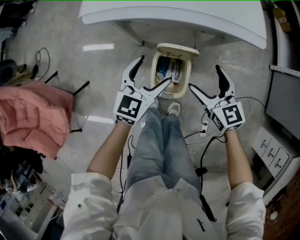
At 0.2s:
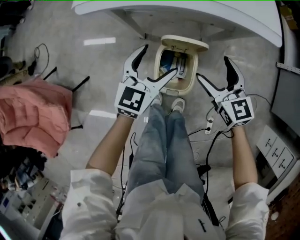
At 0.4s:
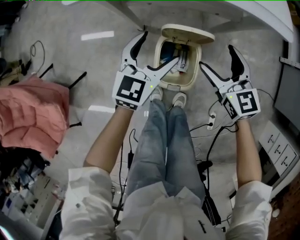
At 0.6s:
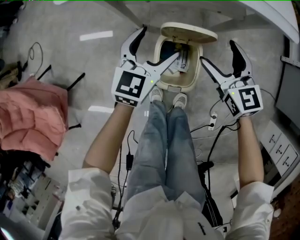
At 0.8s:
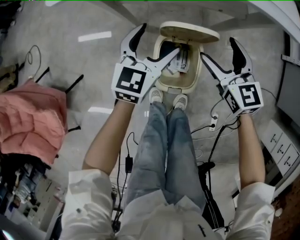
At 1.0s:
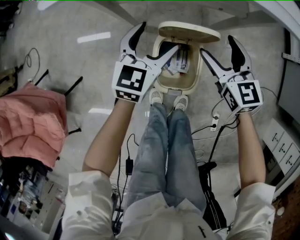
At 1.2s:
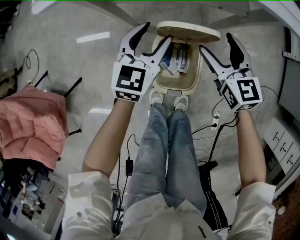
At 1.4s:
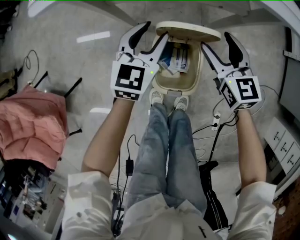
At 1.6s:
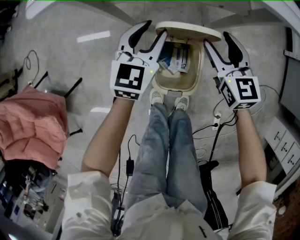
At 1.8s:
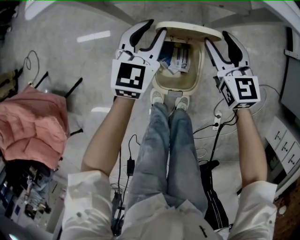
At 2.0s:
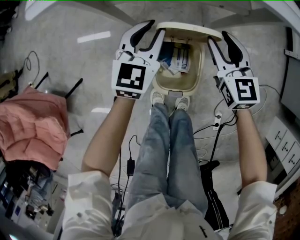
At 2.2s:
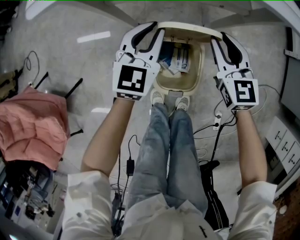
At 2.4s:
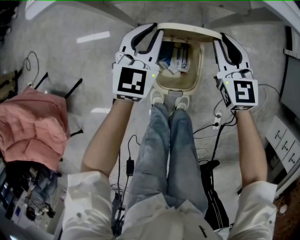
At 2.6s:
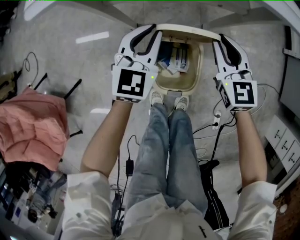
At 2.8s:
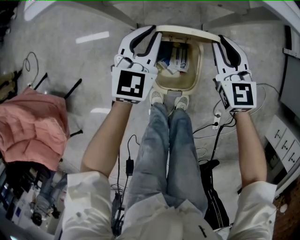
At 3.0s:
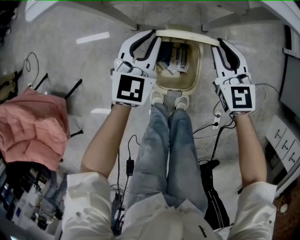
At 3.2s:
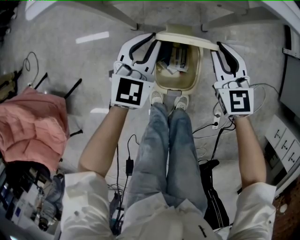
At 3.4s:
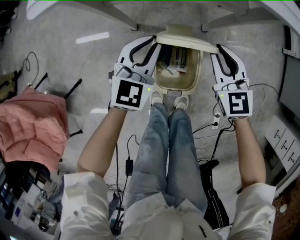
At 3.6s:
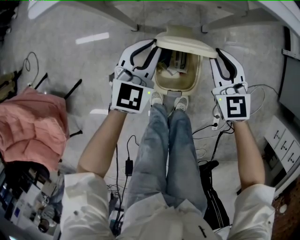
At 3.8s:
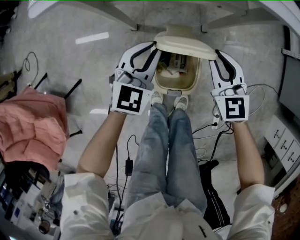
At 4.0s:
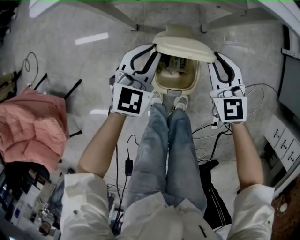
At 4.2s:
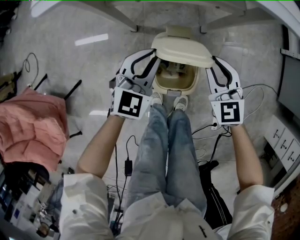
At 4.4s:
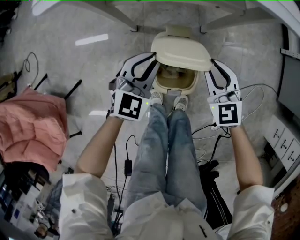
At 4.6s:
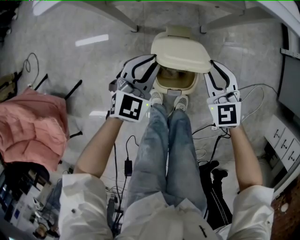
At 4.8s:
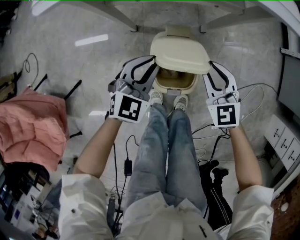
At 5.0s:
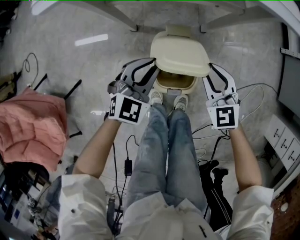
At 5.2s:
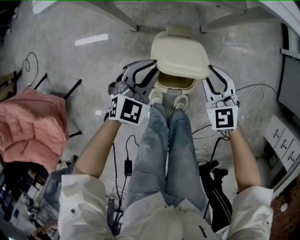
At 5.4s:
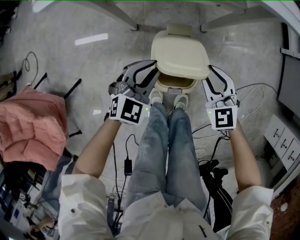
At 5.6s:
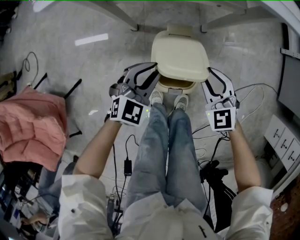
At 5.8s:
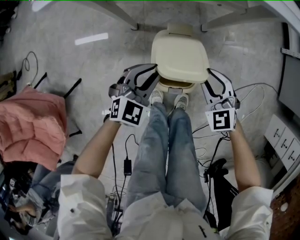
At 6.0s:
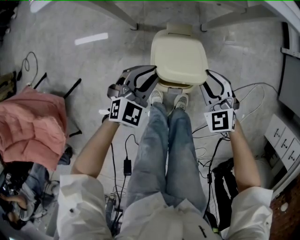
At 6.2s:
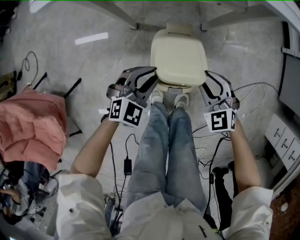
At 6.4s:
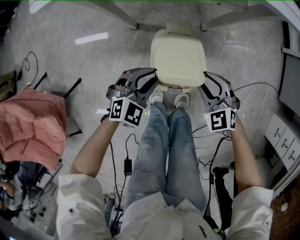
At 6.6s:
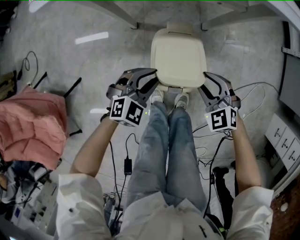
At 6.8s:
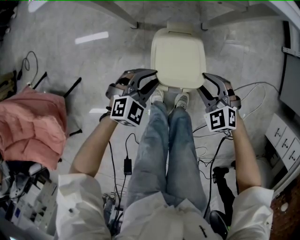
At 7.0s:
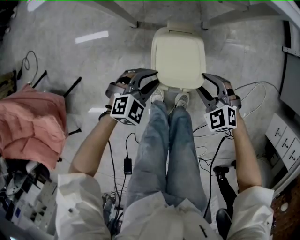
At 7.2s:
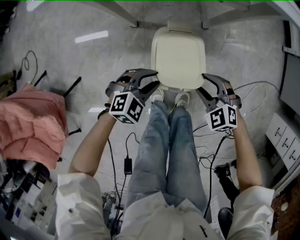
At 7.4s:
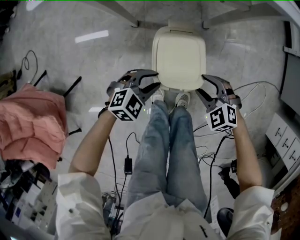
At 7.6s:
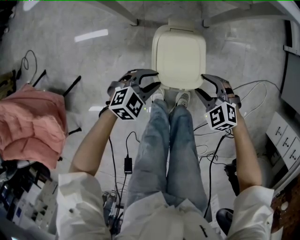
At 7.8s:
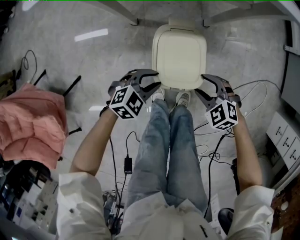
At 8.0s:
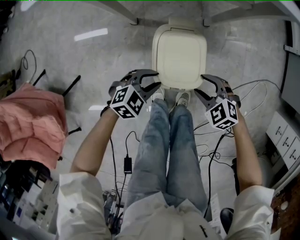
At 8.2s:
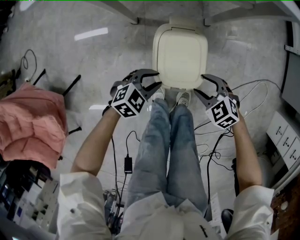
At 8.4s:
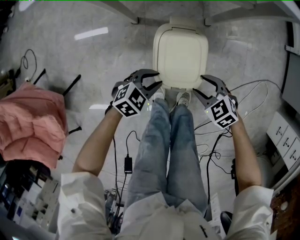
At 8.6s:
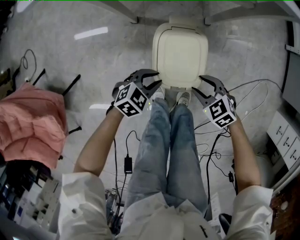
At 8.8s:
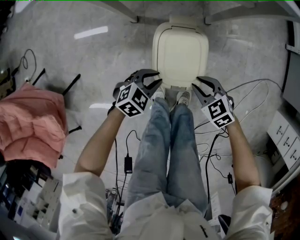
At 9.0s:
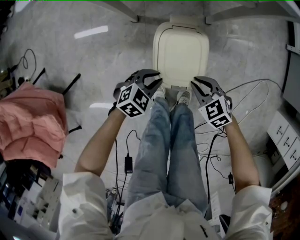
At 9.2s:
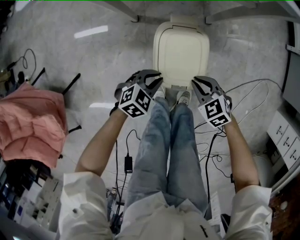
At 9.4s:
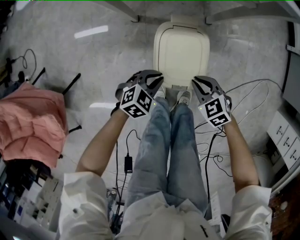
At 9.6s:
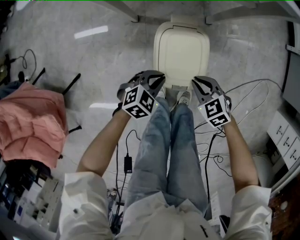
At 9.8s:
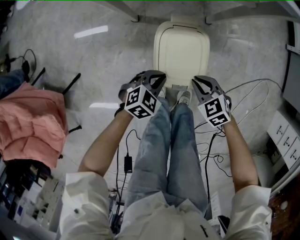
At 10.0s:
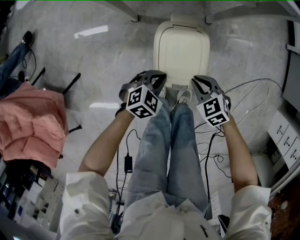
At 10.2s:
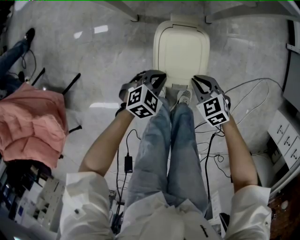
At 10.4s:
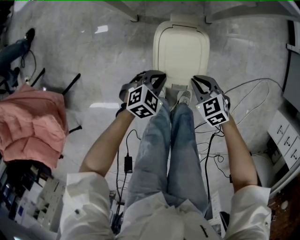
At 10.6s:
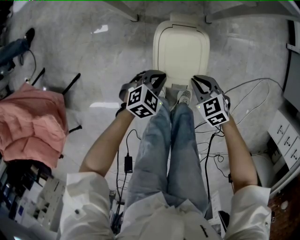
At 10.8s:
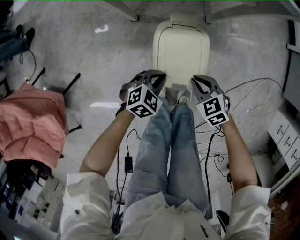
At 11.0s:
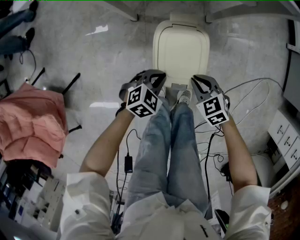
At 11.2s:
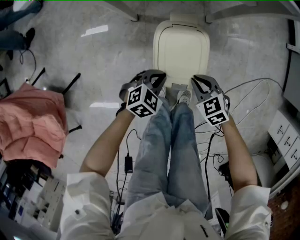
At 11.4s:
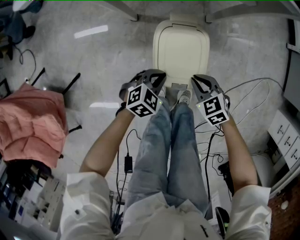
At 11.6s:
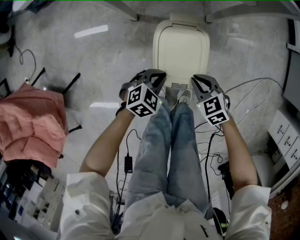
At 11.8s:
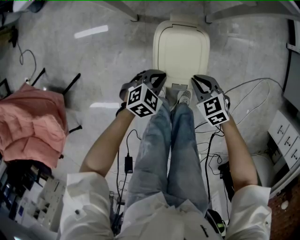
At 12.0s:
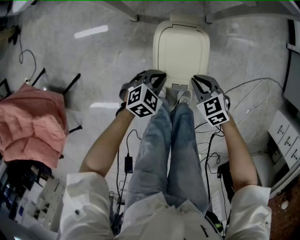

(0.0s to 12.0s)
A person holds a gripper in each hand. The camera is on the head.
0.0s - 1.6s: Both grippers travel together downward and forward, approximately 15 cm. The left gripper closes up; the right gripper closes its fingers.
1.6s - 3.0s: The right gripper closes.
3.0s - 4.4s: Both grippers travel together backward, some 5 cm.
4.4s - 6.0s: The two grippers go about 5 cm backward.
6.0s - 7.6s: The two grippers go some 5 cm downward. The left gripper rotates about 20 degrees, while the right gripper swivels roughly 20 degrees.
7.6s - 9.0s: The right gripper turns by roughly 20 degrees.
9.0s - 10.4s: There are only small adjustments of the grippers.
10.4s - 12.0s: Neither gripper changes place.

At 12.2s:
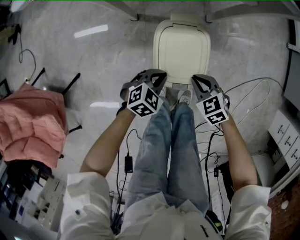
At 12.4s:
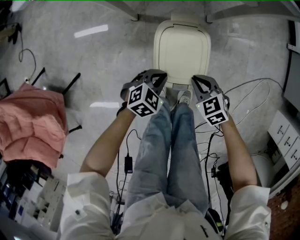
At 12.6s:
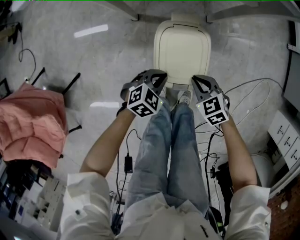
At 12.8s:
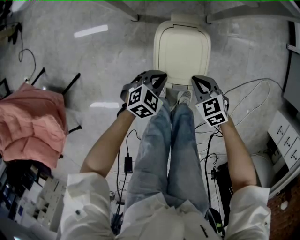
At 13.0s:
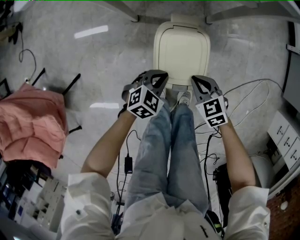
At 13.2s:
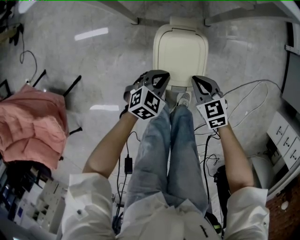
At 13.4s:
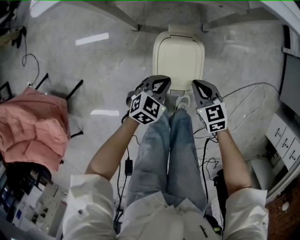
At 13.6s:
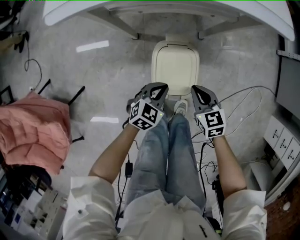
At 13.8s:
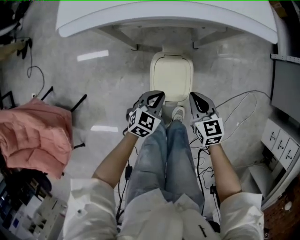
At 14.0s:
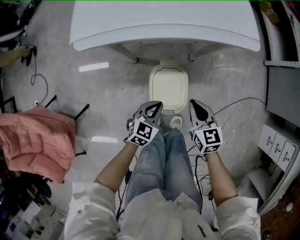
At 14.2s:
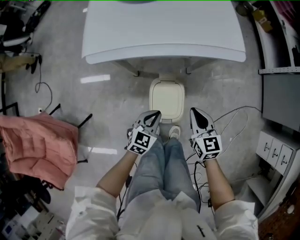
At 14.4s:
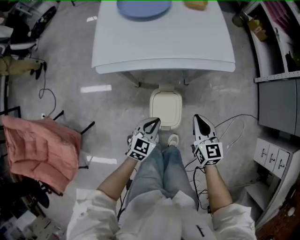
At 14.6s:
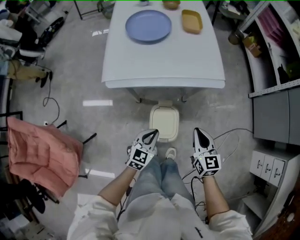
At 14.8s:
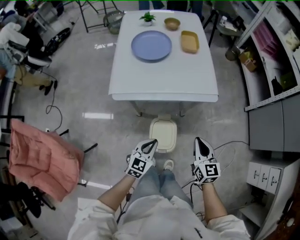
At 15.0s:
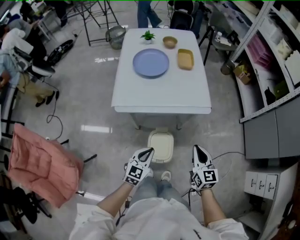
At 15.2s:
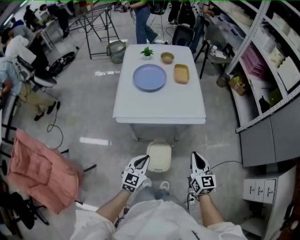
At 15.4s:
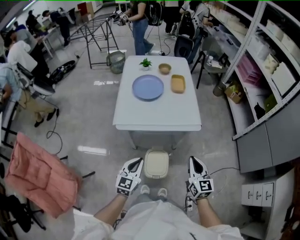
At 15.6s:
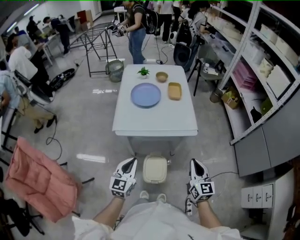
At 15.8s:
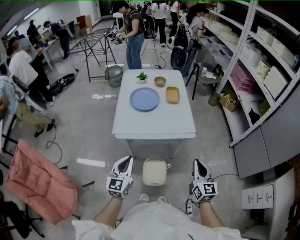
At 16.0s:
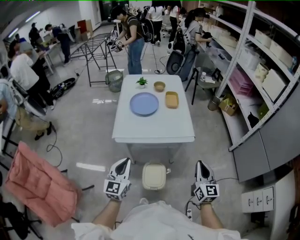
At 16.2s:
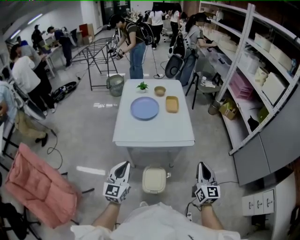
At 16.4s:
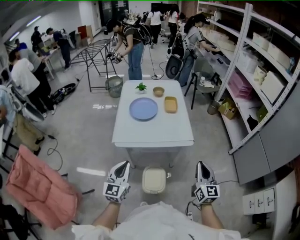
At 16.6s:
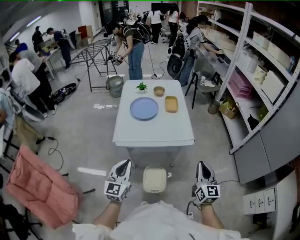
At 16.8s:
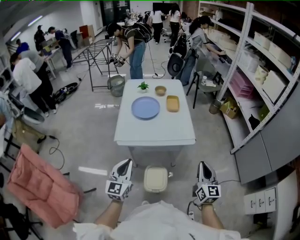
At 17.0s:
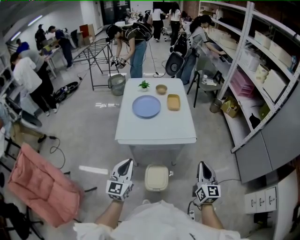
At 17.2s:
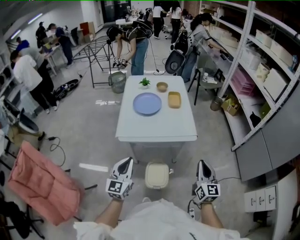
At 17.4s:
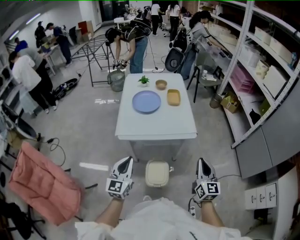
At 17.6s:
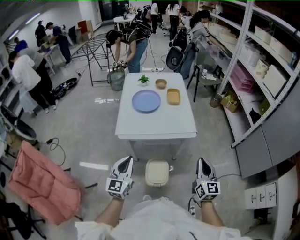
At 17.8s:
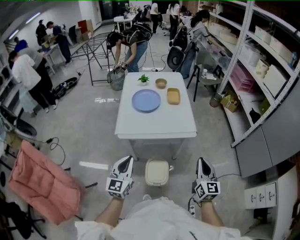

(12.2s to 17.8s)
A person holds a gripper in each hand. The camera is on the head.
12.2s - 13.6s: Both grippers move upward, some 10 cm. The right gripper swivels roughly 20 degrees.
13.6s - 15.0s: The grippers both shift upward by approximately 50 cm. The right gripper changes its angle by some 30 degrees, while the left gripper turns by approximately 20 degrees.
15.0s - 16.4s: The right gripper heads upward and to the right, covering some 20 cm. The left gripper travels upward by some 25 cm, and rotates roughly 30 degrees.
16.4s - 17.8s: The grippers stay close to where they were, moving slightly.

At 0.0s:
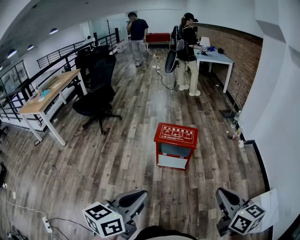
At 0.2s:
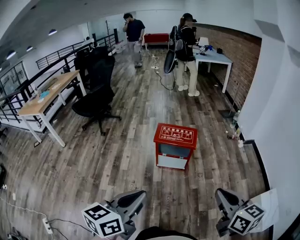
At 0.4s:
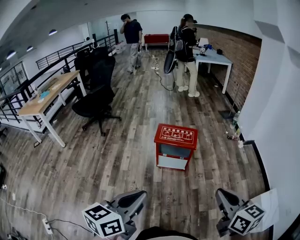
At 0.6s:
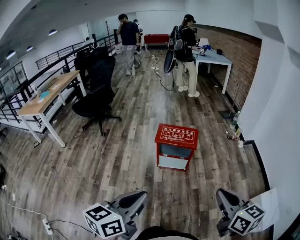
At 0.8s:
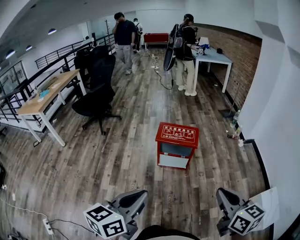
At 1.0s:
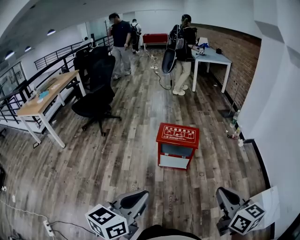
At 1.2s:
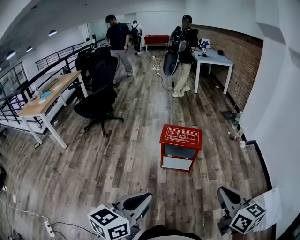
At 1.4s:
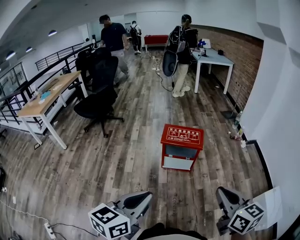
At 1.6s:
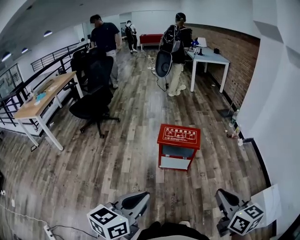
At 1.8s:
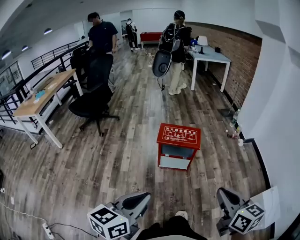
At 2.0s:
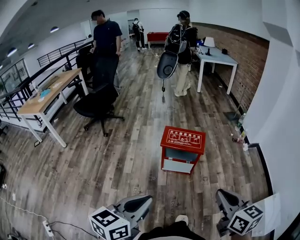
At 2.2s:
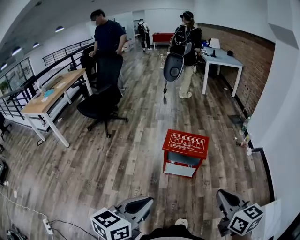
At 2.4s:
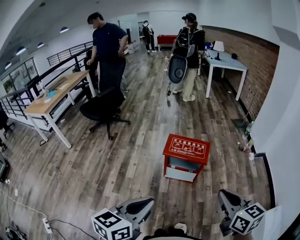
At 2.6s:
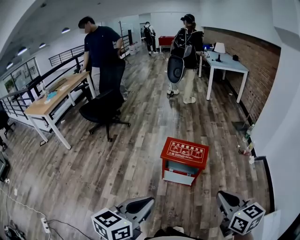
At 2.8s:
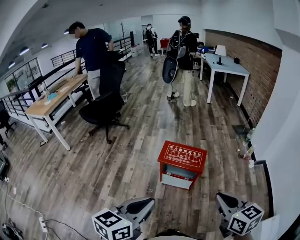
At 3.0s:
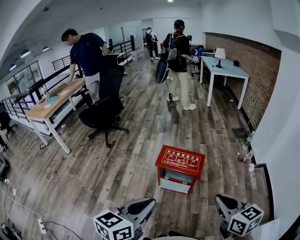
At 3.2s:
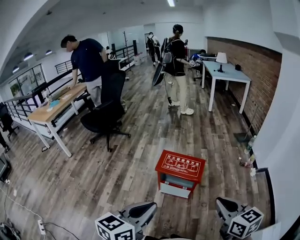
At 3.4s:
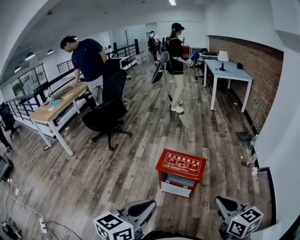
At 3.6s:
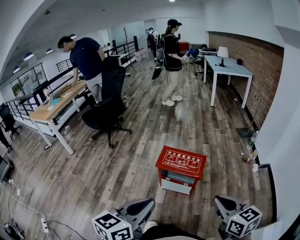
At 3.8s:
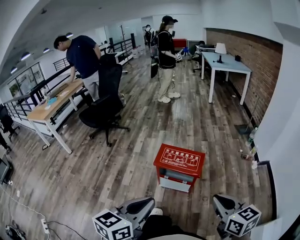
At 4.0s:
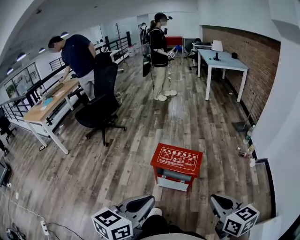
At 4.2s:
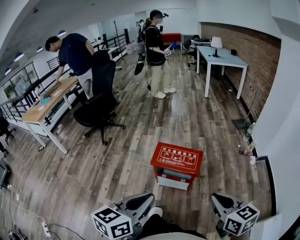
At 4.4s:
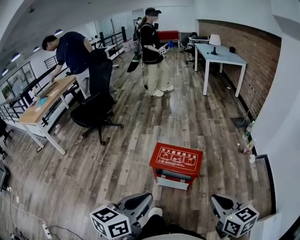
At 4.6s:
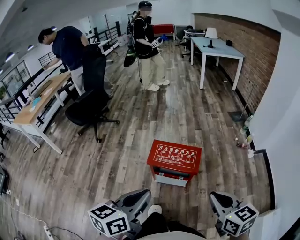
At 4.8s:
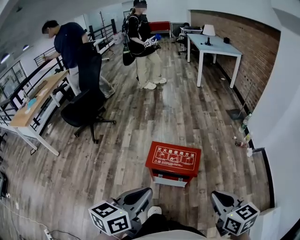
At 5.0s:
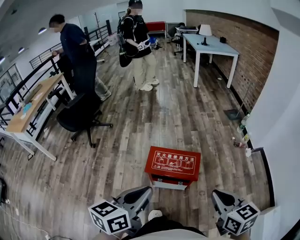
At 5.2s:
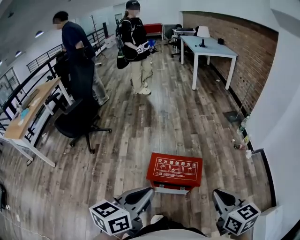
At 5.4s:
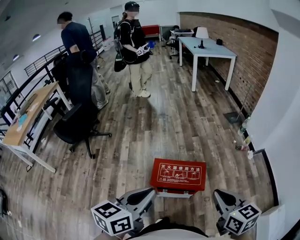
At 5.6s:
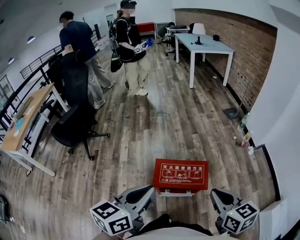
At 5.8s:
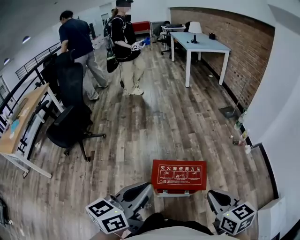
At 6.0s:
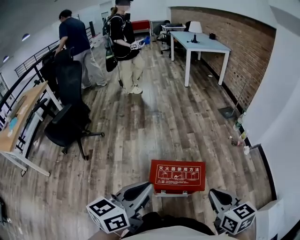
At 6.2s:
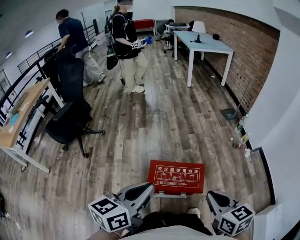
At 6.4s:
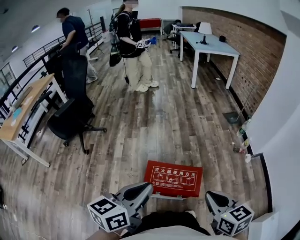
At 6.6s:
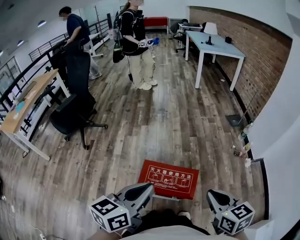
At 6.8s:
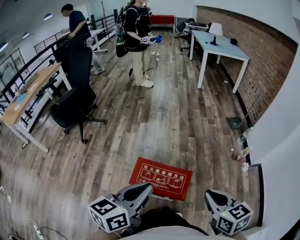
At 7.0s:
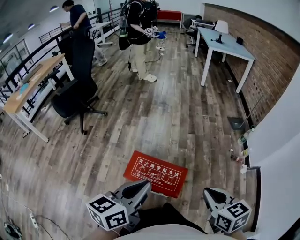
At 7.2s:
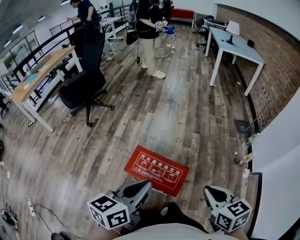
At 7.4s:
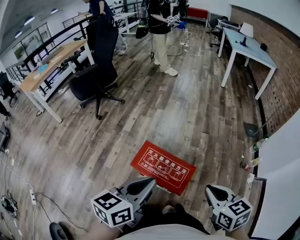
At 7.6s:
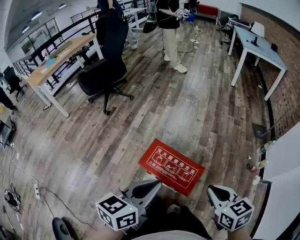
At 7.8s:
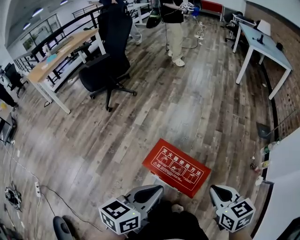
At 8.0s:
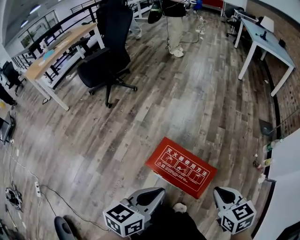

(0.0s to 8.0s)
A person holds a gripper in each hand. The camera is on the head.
0.0s - 1.6s: Both grippers move to the left, about 5 cm.
1.6s - 3.2s: The two grippers go roughly 20 cm forward and to the right.
3.2s - 4.8s: The grippers both shift forward by about 15 cm.
4.8s - 6.4s: The right gripper travels forward and to the left by about 15 cm; the left gripper moves forward, about 20 cm.
6.4s - 8.0s: The right gripper travels downward and forward by approximately 15 cm, and rotates about 30 degrees; the left gripper travels downward and to the right by roughly 15 cm, and turns by approximately 20 degrees.
